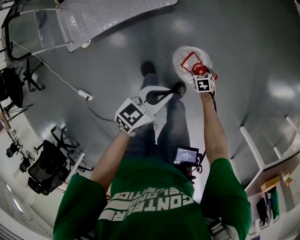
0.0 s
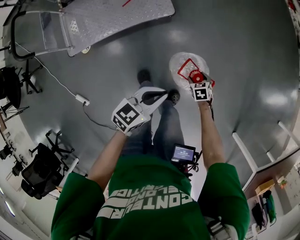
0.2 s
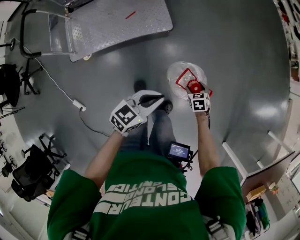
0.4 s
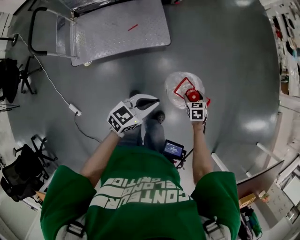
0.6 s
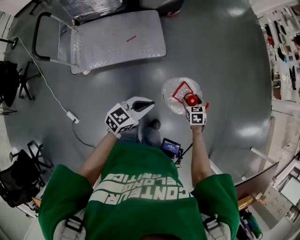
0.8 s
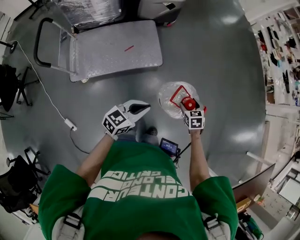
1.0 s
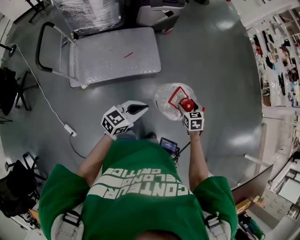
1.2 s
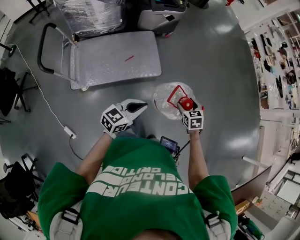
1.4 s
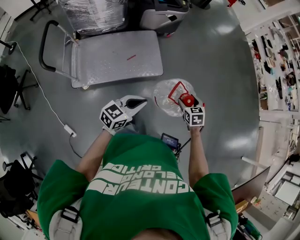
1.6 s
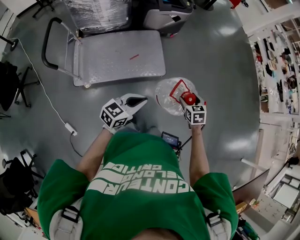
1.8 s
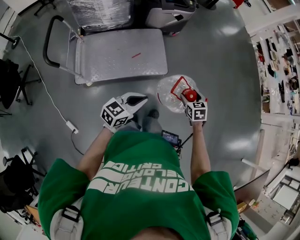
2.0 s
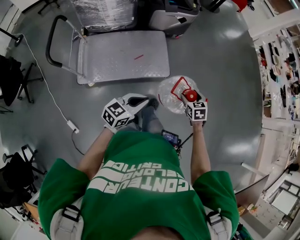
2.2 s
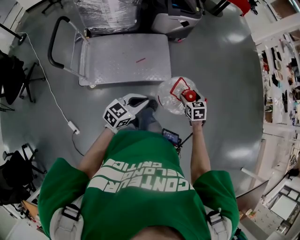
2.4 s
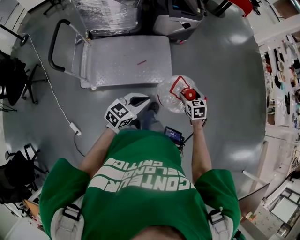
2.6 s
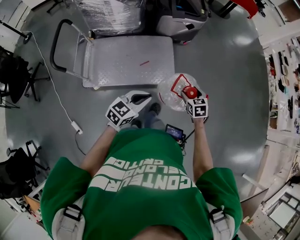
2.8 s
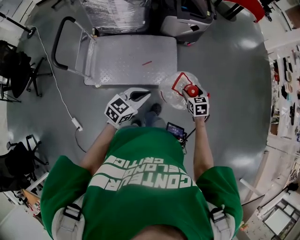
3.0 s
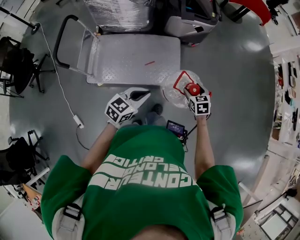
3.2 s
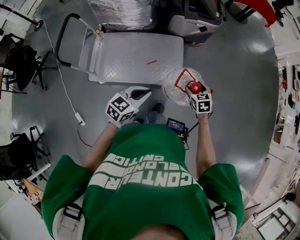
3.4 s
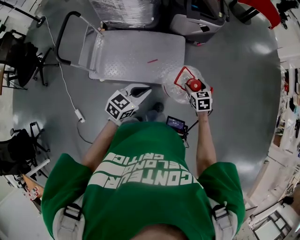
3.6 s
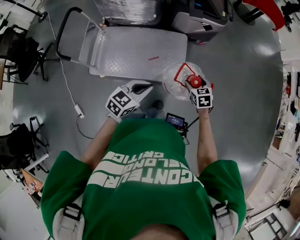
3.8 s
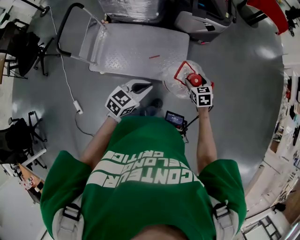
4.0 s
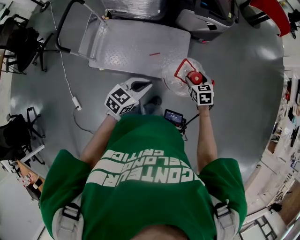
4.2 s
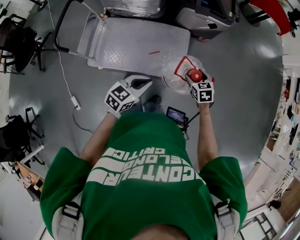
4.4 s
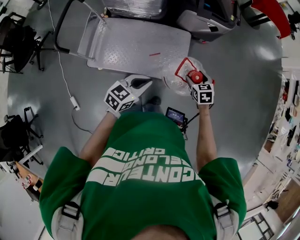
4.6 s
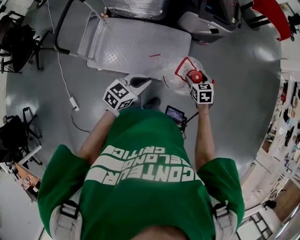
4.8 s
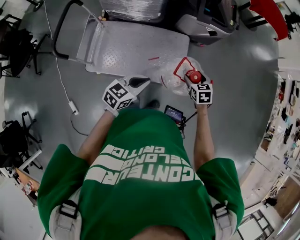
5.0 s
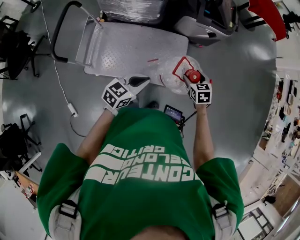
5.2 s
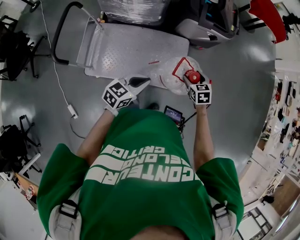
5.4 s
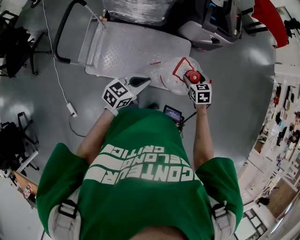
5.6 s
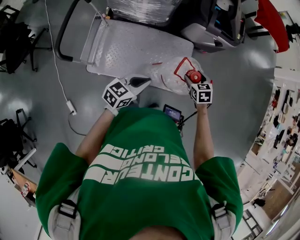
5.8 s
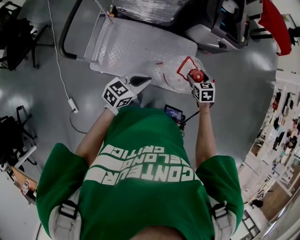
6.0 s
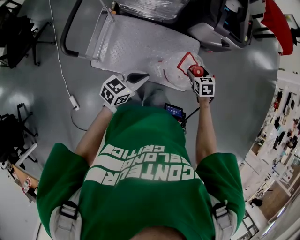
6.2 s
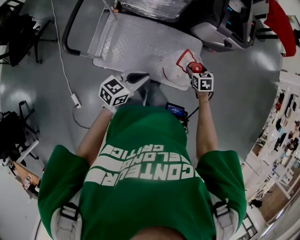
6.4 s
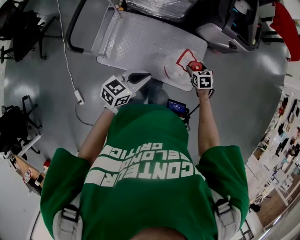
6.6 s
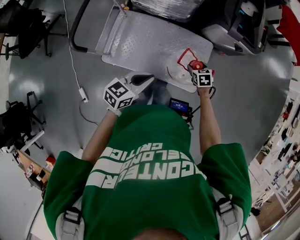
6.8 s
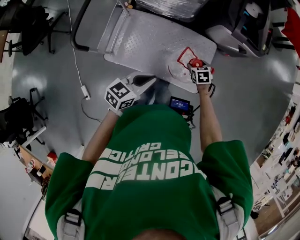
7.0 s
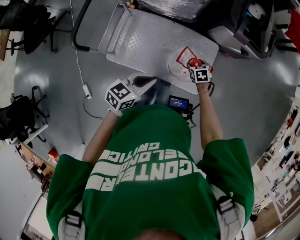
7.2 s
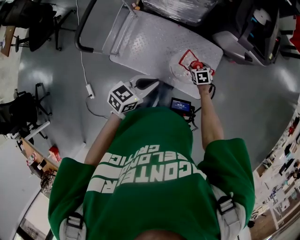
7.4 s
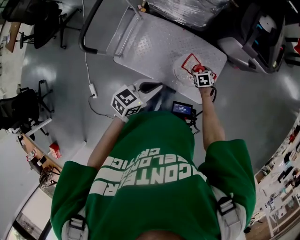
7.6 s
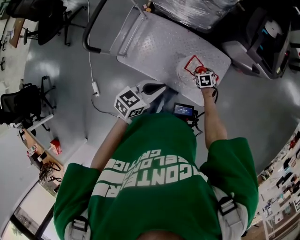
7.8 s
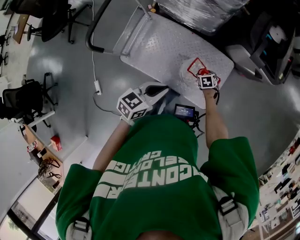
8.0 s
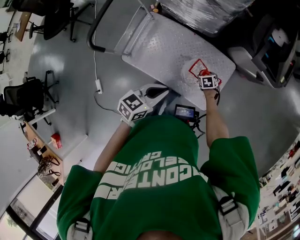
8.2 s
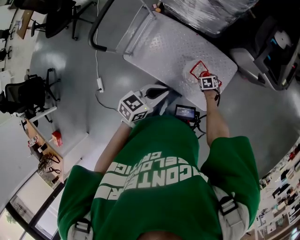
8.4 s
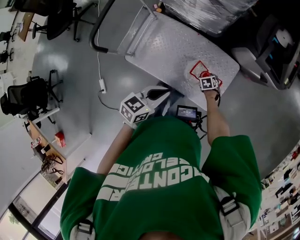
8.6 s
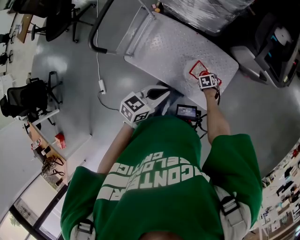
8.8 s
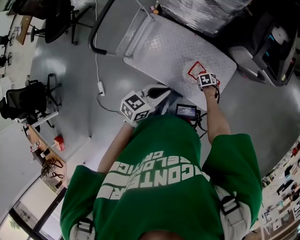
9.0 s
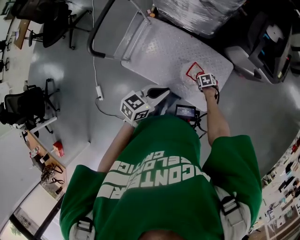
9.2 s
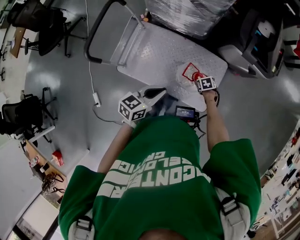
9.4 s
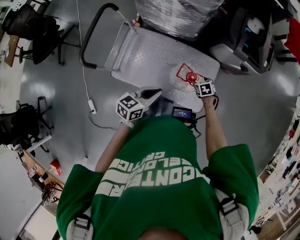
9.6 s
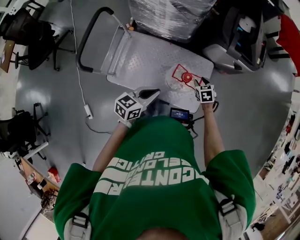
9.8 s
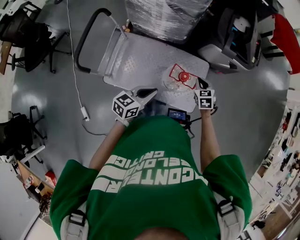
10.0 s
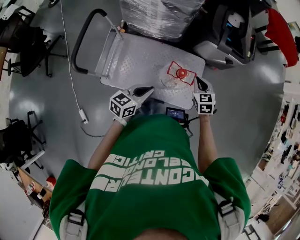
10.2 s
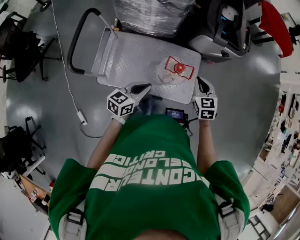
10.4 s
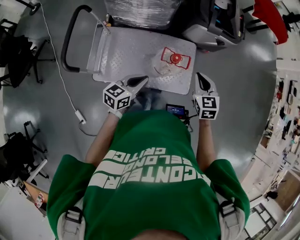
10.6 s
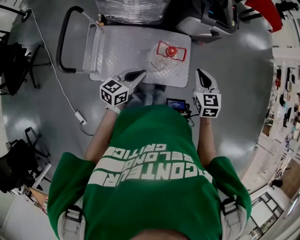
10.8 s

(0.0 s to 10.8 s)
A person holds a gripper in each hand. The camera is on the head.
0.0 s - 1.6 s: The left gripper is displaced to the left and upward by roughly 25 cm, while the right gripper travels upward by some 40 cm, and turns by about 20 degrees.
1.6 s - 3.0 s: The two grippers go approximately 15 cm forward and to the left.
3.0 s - 4.6 s: The two grippers go about 10 cm forward.
4.6 s - 6.2 s: The right gripper is displaced to the left and forward by about 20 cm, while the left gripper shifts about 20 cm to the left.
6.2 s - 7.8 s: The left gripper is displaced forward by roughly 5 cm, while the right gripper travels downward and forward by roughly 20 cm, and swivels roughly 20 degrees.
7.8 s - 9.2 s: The grippers make only small movements.
9.2 s - 10.8 s: The right gripper travels upward by approximately 40 cm, points its fingers some 50 degrees further upward, and closes. The left gripper changes place by some 5 cm.

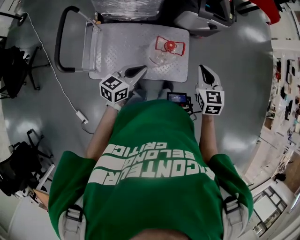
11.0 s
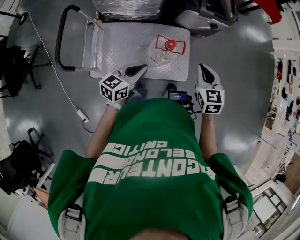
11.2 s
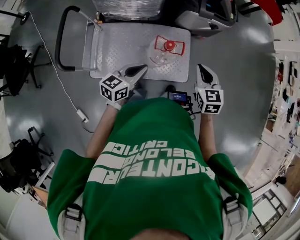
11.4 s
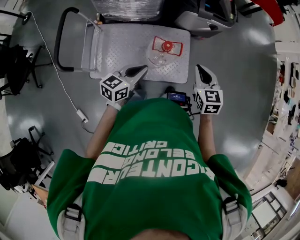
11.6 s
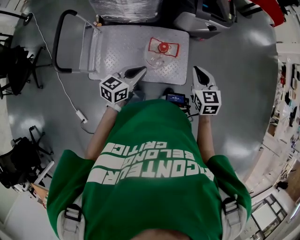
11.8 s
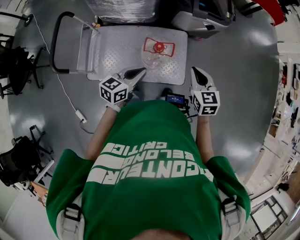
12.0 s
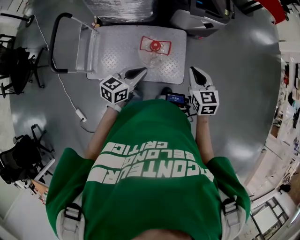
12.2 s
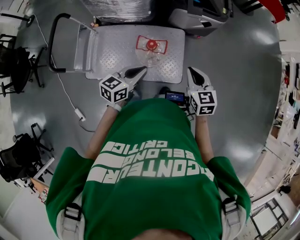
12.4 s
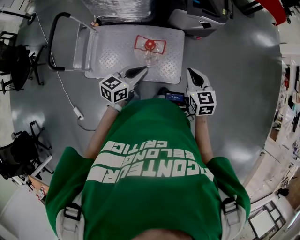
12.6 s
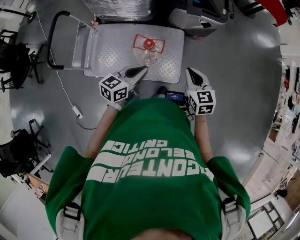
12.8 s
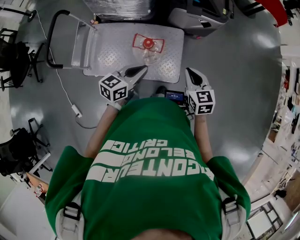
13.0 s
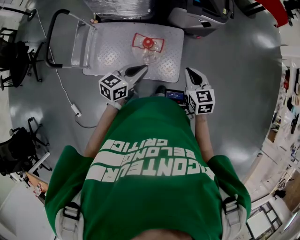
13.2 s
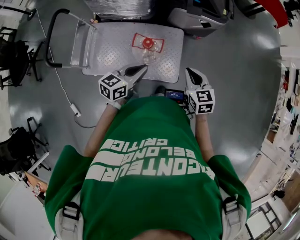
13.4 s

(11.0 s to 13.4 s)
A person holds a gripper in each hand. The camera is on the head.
11.0 s - 12.2 s: Both grippers travel together to the right, roughly 10 cm.
12.2 s - 13.4 s: The left gripper travels to the right by approximately 5 cm.

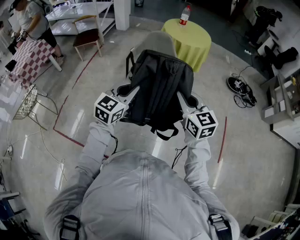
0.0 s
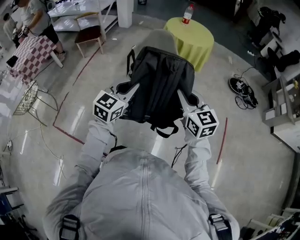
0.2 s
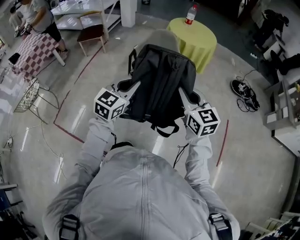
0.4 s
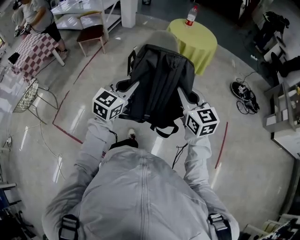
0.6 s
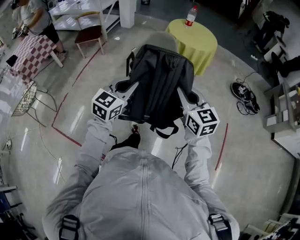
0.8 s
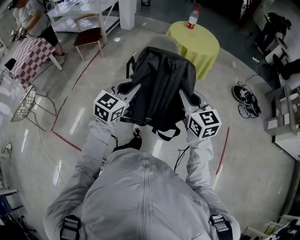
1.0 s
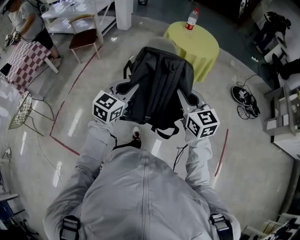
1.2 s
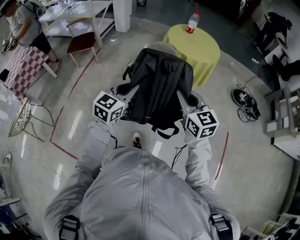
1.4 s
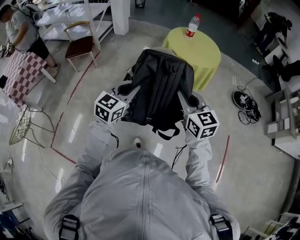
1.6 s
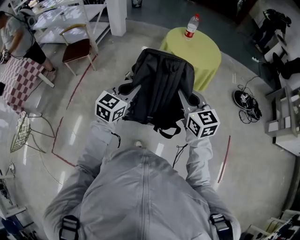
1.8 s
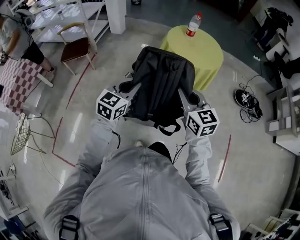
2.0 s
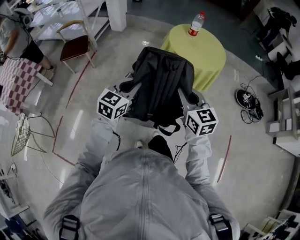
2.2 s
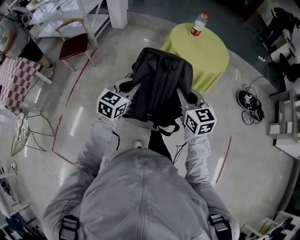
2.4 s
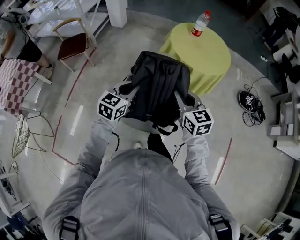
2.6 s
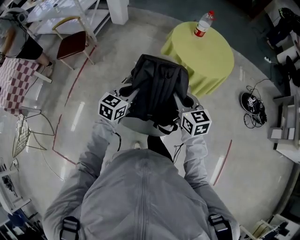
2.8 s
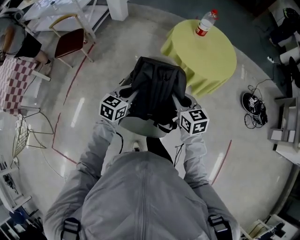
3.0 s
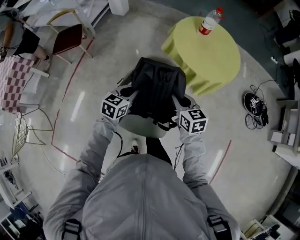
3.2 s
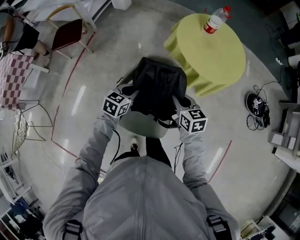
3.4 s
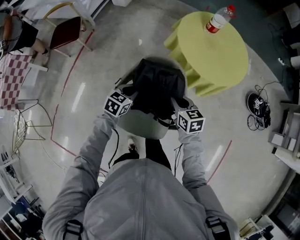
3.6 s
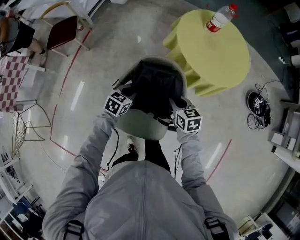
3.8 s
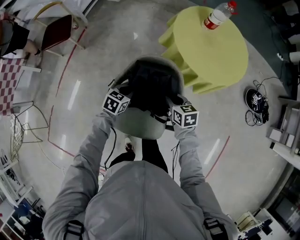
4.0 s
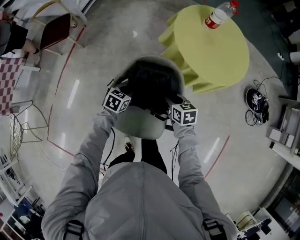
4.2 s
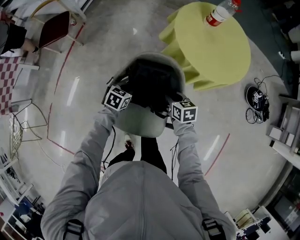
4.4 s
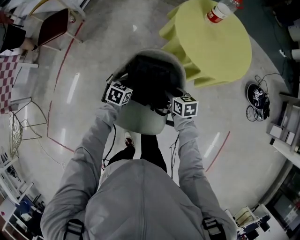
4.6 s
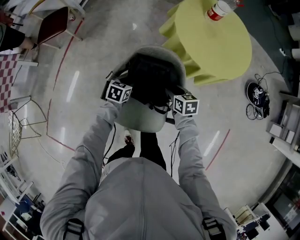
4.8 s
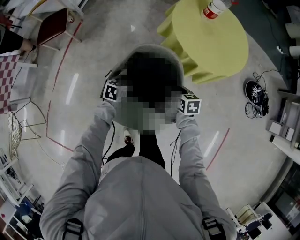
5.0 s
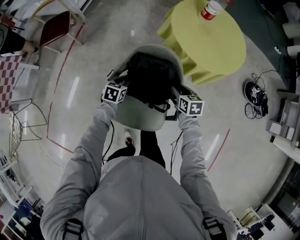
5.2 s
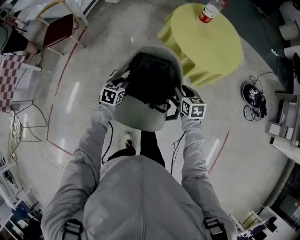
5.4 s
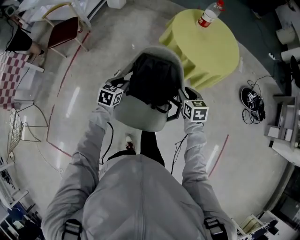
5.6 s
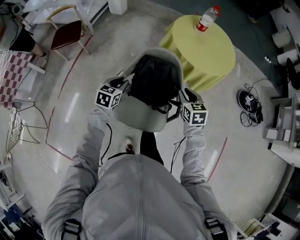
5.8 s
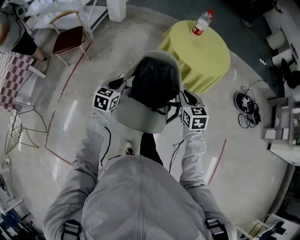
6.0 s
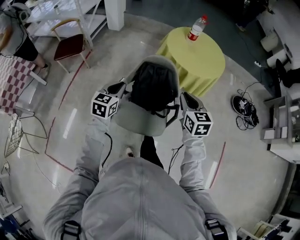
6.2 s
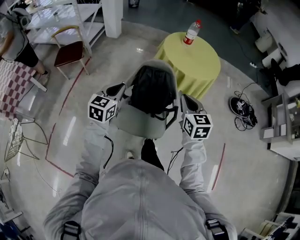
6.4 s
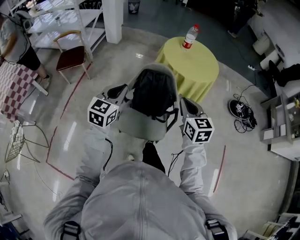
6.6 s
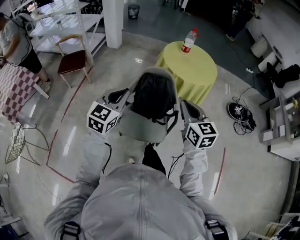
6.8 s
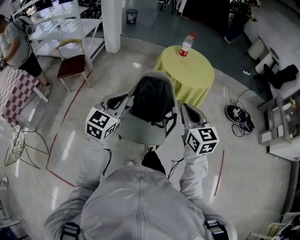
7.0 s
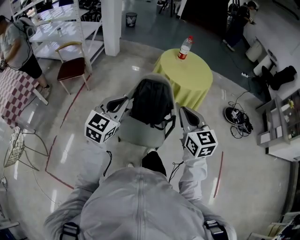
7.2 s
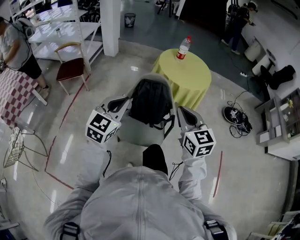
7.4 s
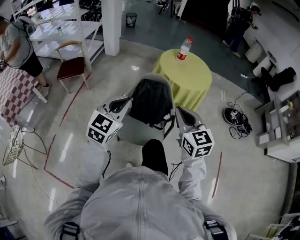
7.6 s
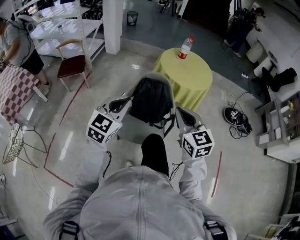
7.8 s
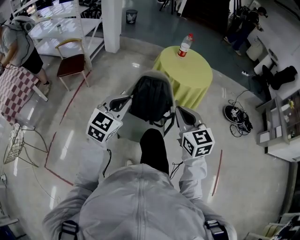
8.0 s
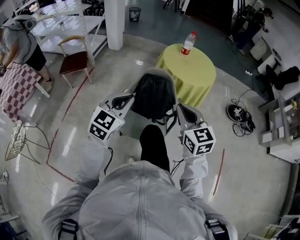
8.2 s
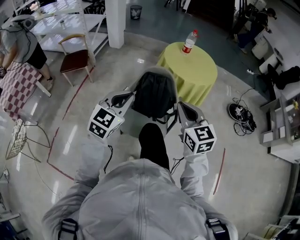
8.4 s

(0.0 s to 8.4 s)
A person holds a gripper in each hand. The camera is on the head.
0.0 s - 1.4 s: Both grippers move forward, approximately 25 cm.
1.4 s - 2.8 s: Both grippers travel together forward and downward, approximately 30 cm.
2.8 s - 4.2 s: The grippers both shift downward and forward by roughly 25 cm. The right gripper rotates some 30 degrees. The left gripper turns by approximately 30 degrees.
4.2 s - 5.6 s: The left gripper moves upward and to the left, some 10 cm. The right gripper shifts roughly 10 cm upward and to the right.
5.6 s - 7.0 s: The grippers both shift upward and backward by some 35 cm. The left gripper points its fingers about 30 degrees further upward, and closes its fingers. The right gripper angles its fingers upward, by about 30 degrees, and closes up.
7.0 s - 8.4 s: There are only small adjustments of the grippers.

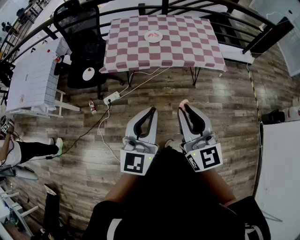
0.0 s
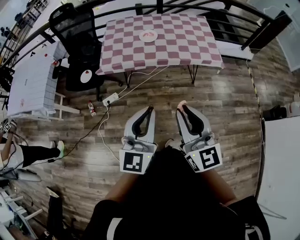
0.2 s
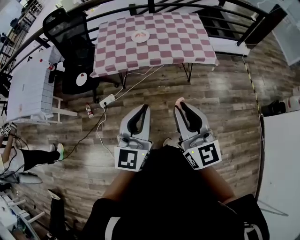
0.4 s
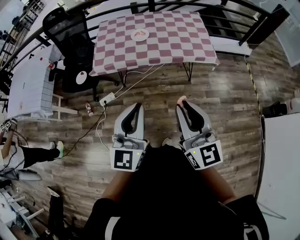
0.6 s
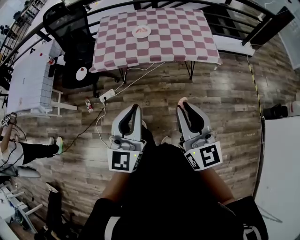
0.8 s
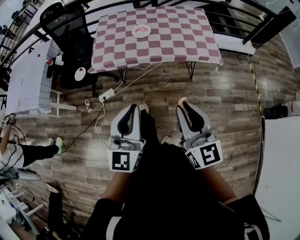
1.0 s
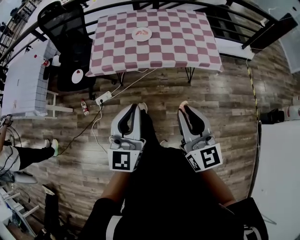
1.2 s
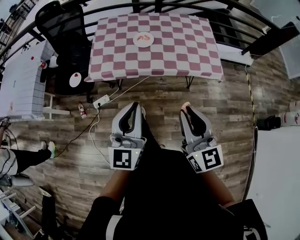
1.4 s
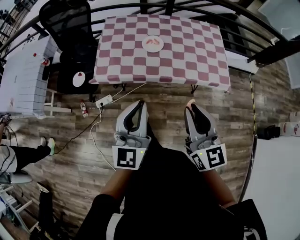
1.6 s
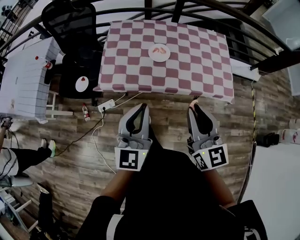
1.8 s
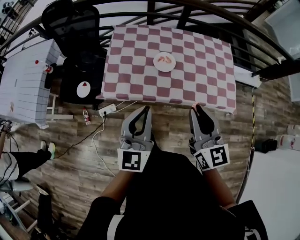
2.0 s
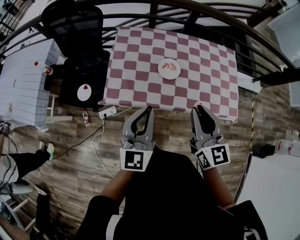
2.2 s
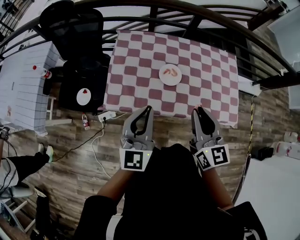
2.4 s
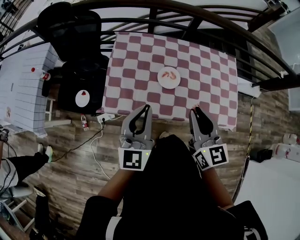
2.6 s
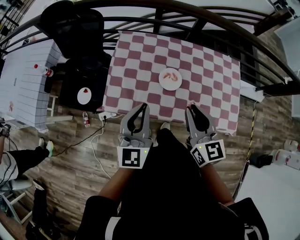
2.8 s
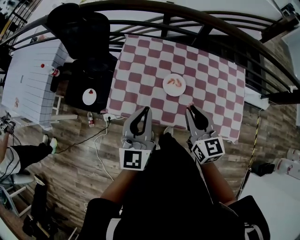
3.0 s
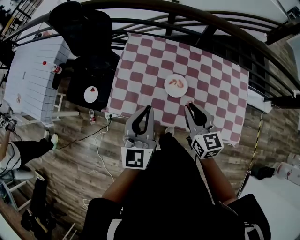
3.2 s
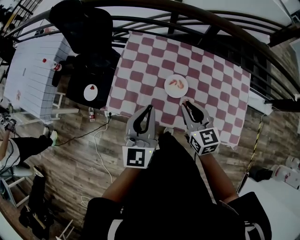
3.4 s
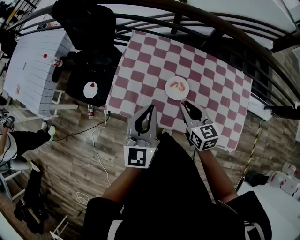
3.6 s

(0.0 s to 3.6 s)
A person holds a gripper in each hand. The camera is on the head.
0.0 s - 1.8 s: The two grippers go some 30 cm forward.
1.8 s - 3.6 s: The right gripper goes some 35 cm forward and downward, and changes its angle by roughly 30 degrees. Meanwhile the left gripper heads forward, covering about 25 cm.
